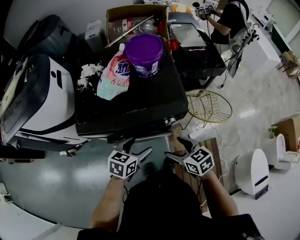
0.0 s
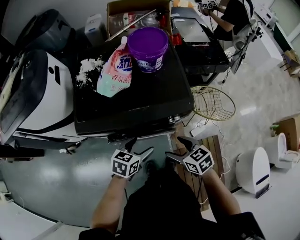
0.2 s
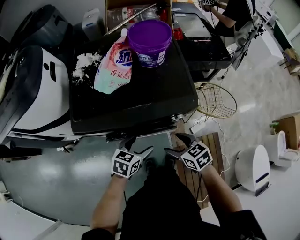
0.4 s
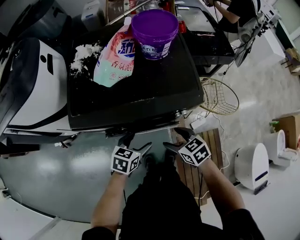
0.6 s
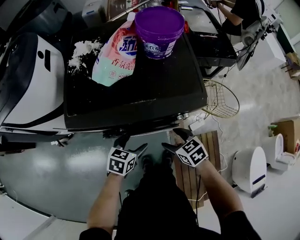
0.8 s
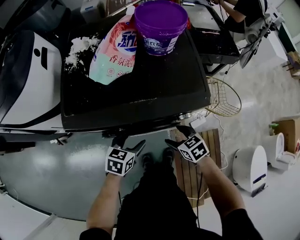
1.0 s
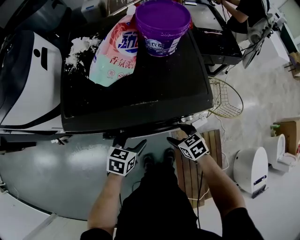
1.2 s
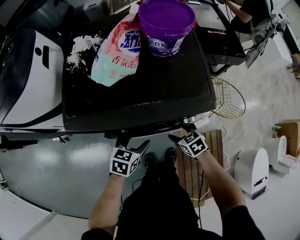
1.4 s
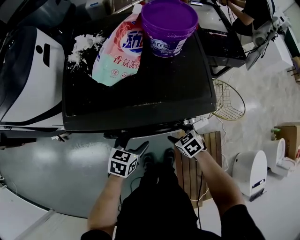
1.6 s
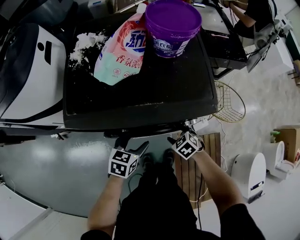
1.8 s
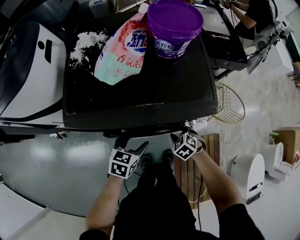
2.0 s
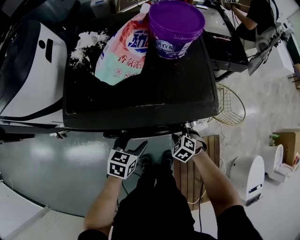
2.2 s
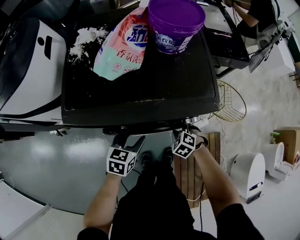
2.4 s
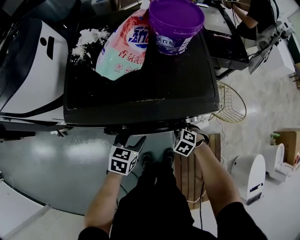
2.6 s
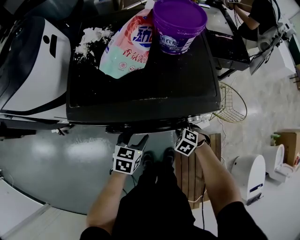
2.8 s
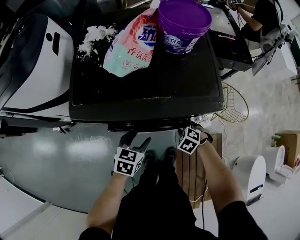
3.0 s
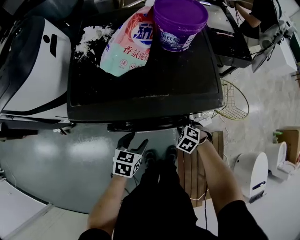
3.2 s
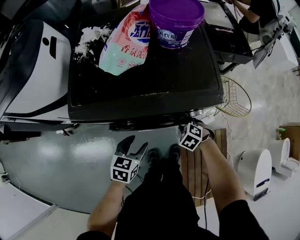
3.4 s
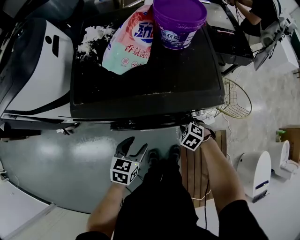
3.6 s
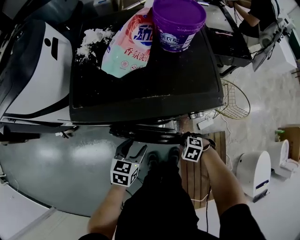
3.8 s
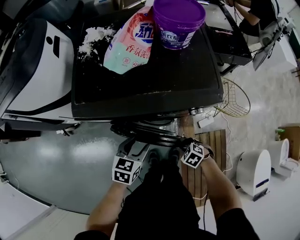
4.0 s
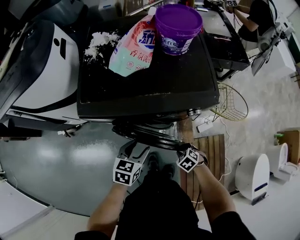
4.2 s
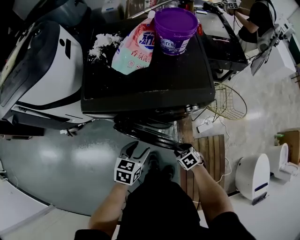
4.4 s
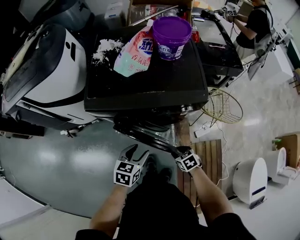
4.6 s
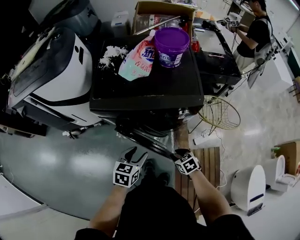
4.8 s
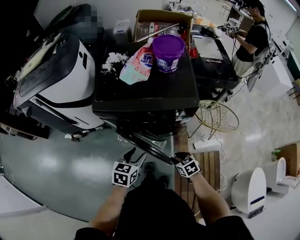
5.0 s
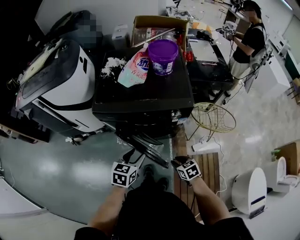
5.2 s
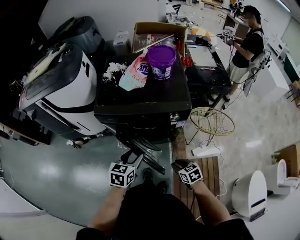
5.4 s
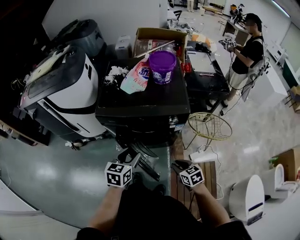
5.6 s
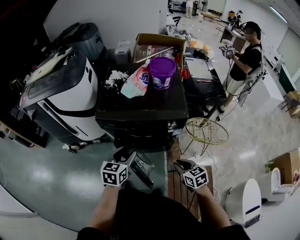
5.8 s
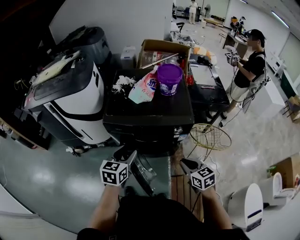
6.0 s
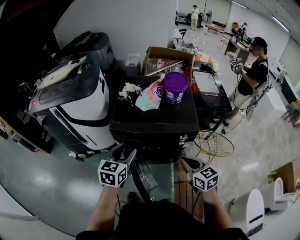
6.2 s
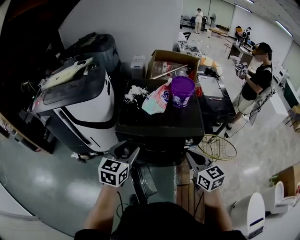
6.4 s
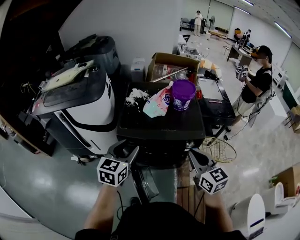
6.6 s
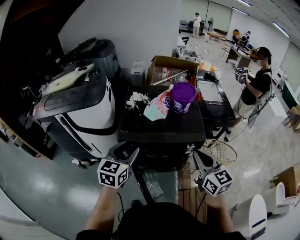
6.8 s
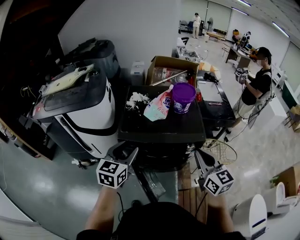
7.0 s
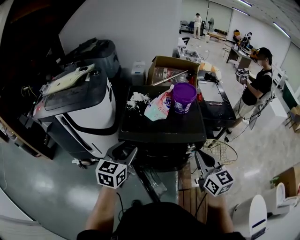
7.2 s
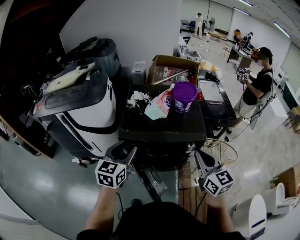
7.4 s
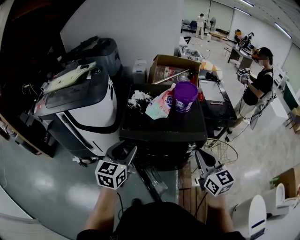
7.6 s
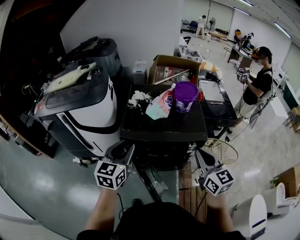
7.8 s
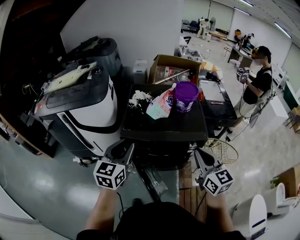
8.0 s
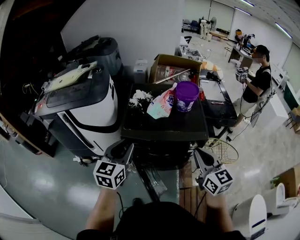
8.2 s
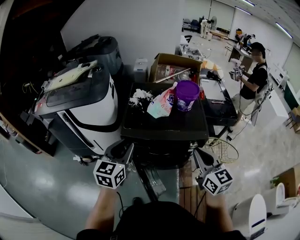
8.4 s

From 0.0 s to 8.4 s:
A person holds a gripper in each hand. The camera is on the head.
From 0.0 s to 1.4 s: The right gripper moves downward, about 20 cm, and turns by roughly 20 degrees, while the left gripper goes roughly 15 cm downward.
From 1.4 s to 2.8 s: The right gripper changes its angle by roughly 40 degrees, and closes.
From 2.8 s to 4.2 s: The right gripper changes place by roughly 15 cm. Meanwhile the left gripper moves about 10 cm.
From 4.2 s to 5.6 s: The two grippers go some 20 cm upward. The right gripper angles its fingers upward, by some 30 degrees.
From 5.6 s to 7.0 s: The left gripper is displaced upward, to the left and forward by some 25 cm. The right gripper travels upward by about 30 cm, and points its fingers about 40 degrees further upward.
From 7.0 s to 8.4 s: The grippers stay close to where they were, moving slightly.

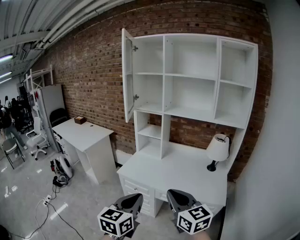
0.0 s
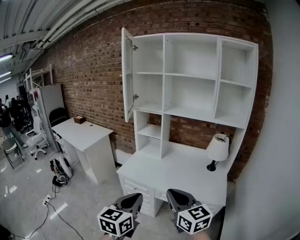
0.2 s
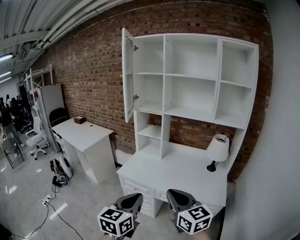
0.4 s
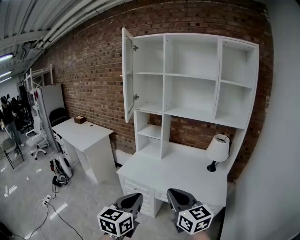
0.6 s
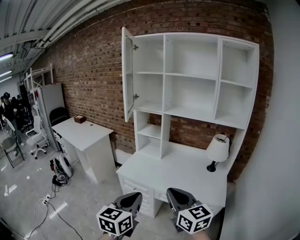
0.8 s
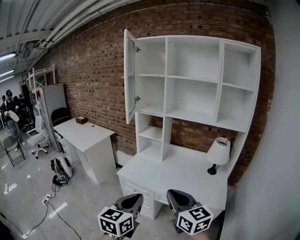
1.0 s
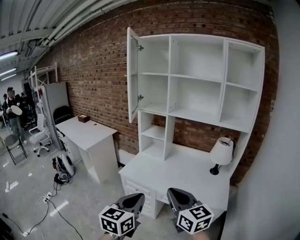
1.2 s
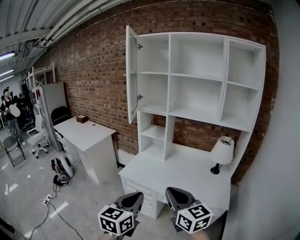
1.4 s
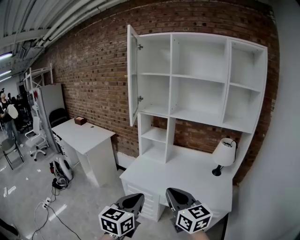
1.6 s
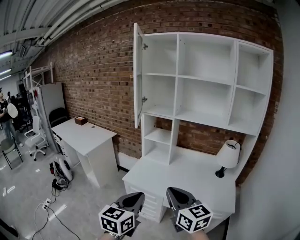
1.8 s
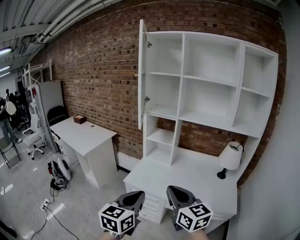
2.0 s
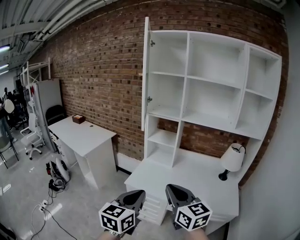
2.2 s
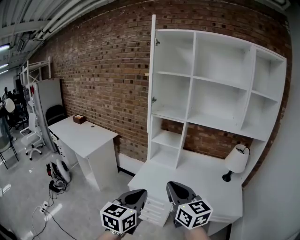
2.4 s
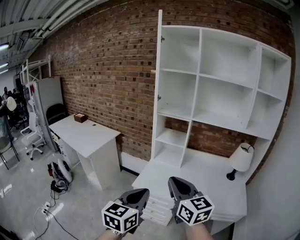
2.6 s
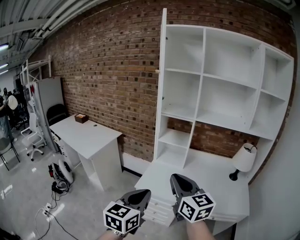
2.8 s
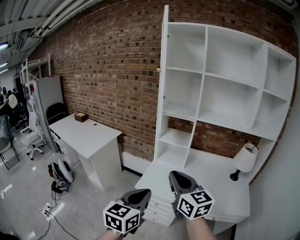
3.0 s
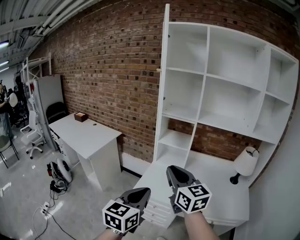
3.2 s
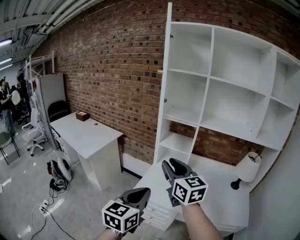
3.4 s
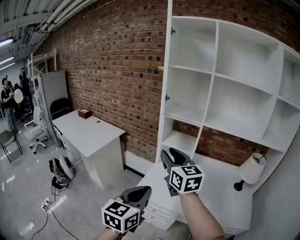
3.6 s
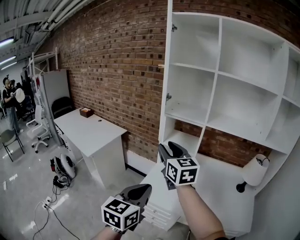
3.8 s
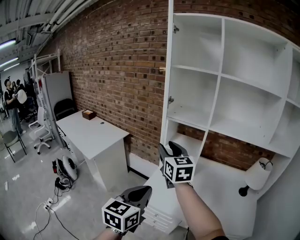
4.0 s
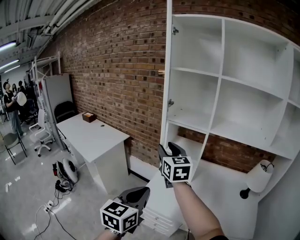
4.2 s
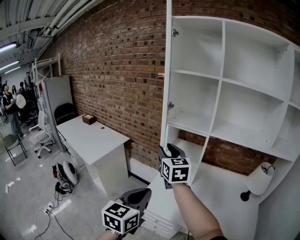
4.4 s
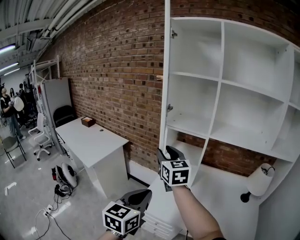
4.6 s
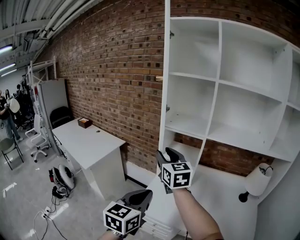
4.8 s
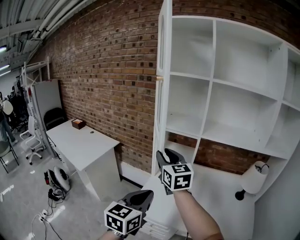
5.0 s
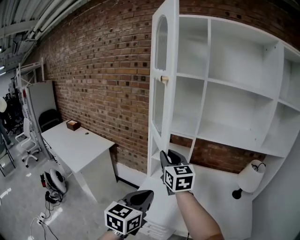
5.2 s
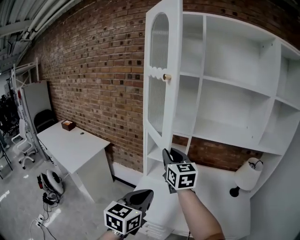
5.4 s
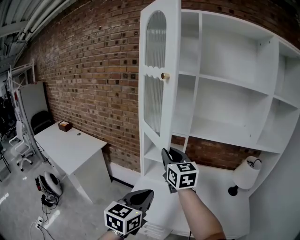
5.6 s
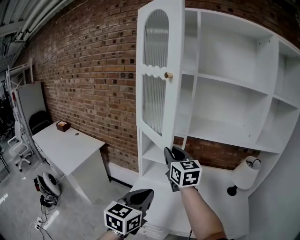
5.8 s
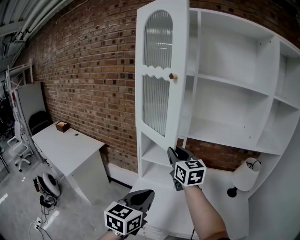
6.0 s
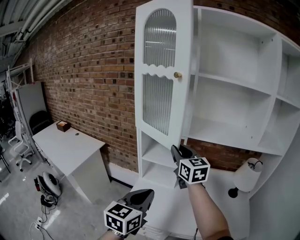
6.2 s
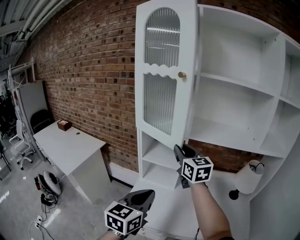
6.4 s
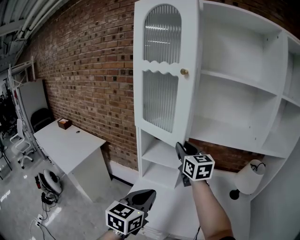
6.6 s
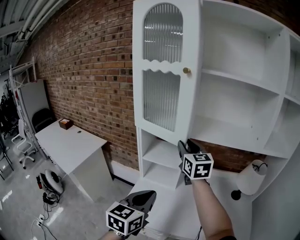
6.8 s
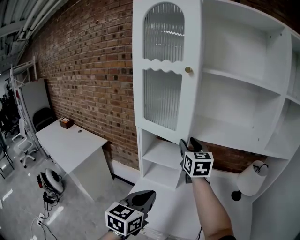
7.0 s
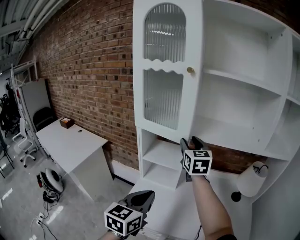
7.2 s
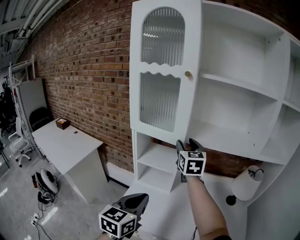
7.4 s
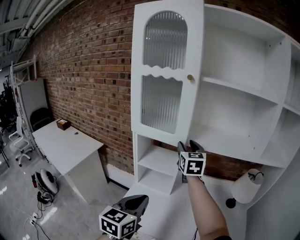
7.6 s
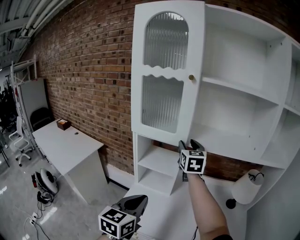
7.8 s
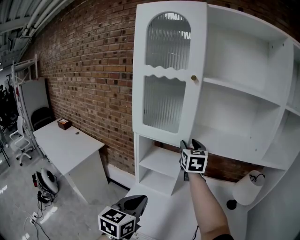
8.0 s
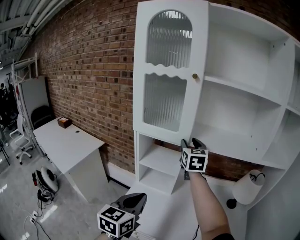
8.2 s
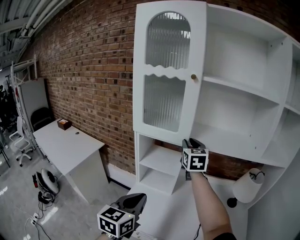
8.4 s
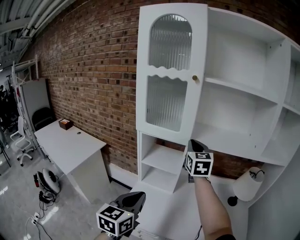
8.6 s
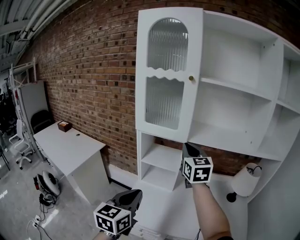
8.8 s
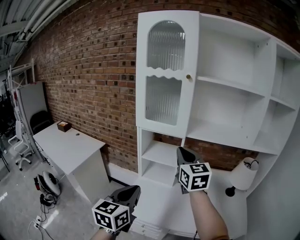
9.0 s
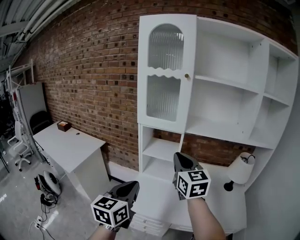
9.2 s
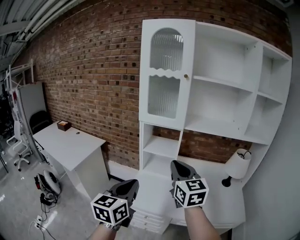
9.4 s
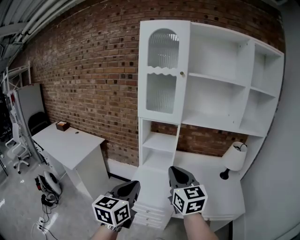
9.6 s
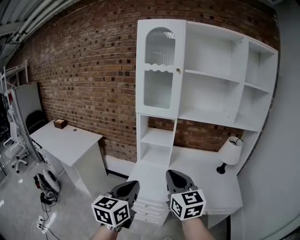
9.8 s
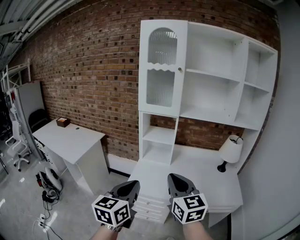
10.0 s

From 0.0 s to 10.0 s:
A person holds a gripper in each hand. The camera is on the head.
From 0.0 s to 1.4 s: There are only small adjustments of the grippers.
From 1.4 s to 2.8 s: The right gripper moves forward and to the left, about 30 cm; the left gripper shifts approximately 25 cm to the left and forward.
From 2.8 s to 4.2 s: The left gripper moves forward, some 15 cm. The right gripper goes approximately 30 cm forward, and opens its fingers.
From 4.2 s to 5.8 s: The two grippers go approximately 15 cm to the right and forward. The right gripper closes.
From 5.8 s to 7.2 s: The right gripper shifts roughly 15 cm forward and to the right, and opens its fingers, while the left gripper travels forward by roughly 5 cm.
From 7.2 s to 8.6 s: The right gripper closes.
From 8.6 s to 10.0 s: The left gripper is displaced backward by roughly 25 cm; the right gripper travels backward by some 50 cm.

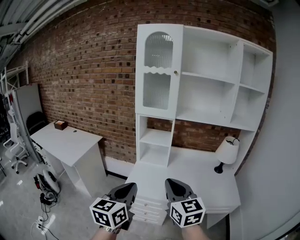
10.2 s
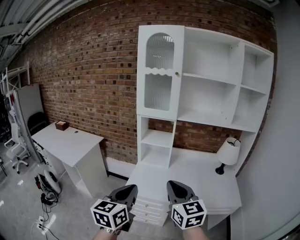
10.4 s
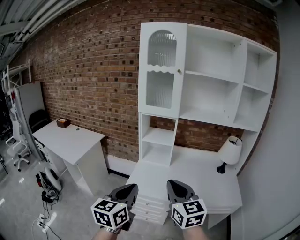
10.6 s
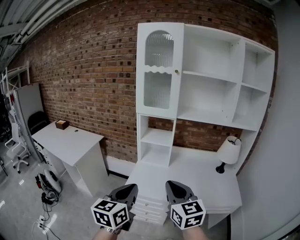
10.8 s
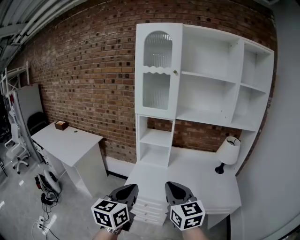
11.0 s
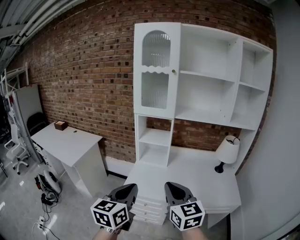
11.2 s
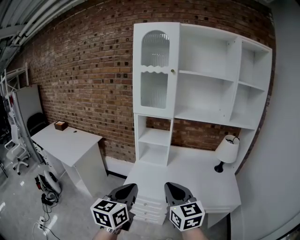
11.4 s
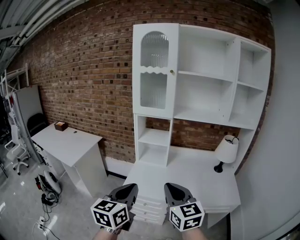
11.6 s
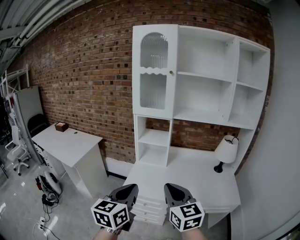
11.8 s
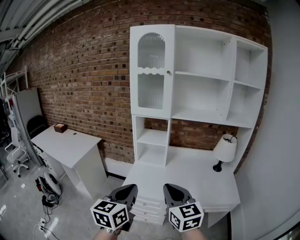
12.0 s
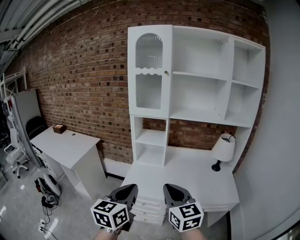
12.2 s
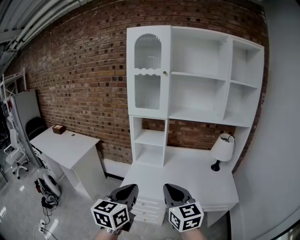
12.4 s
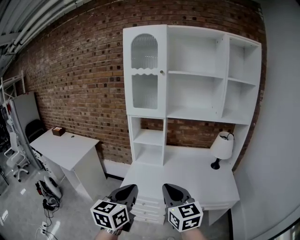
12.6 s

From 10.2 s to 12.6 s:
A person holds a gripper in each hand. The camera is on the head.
From 10.2 s to 12.6 s: There are only small adjustments of the grippers.

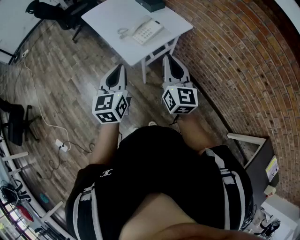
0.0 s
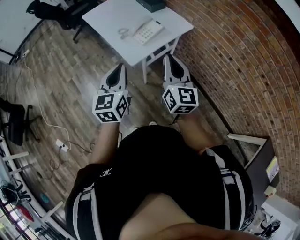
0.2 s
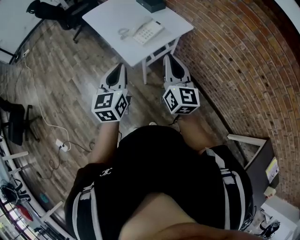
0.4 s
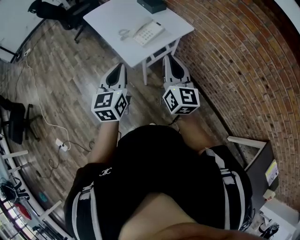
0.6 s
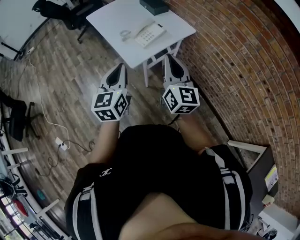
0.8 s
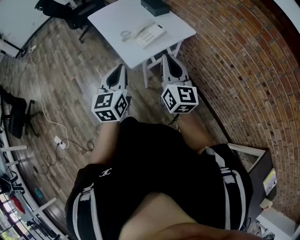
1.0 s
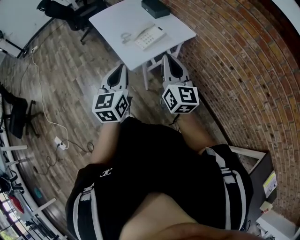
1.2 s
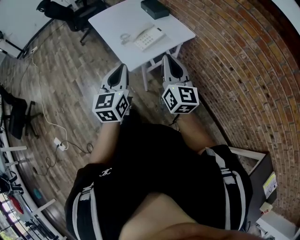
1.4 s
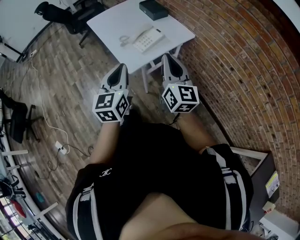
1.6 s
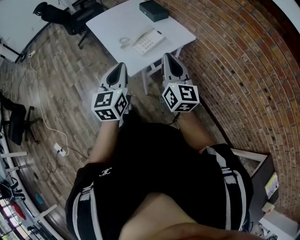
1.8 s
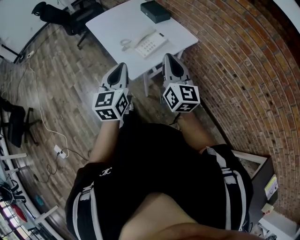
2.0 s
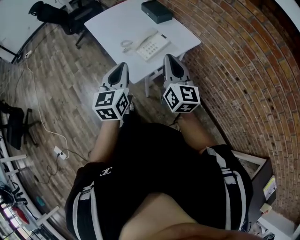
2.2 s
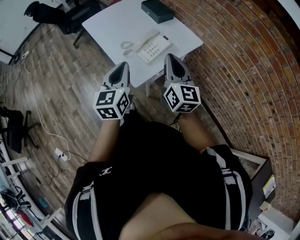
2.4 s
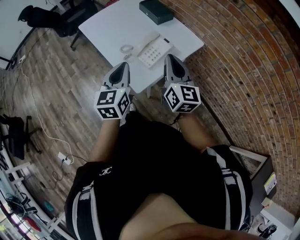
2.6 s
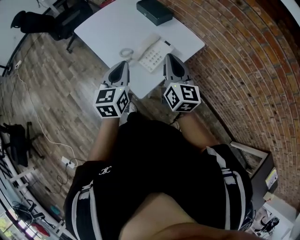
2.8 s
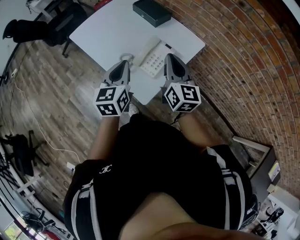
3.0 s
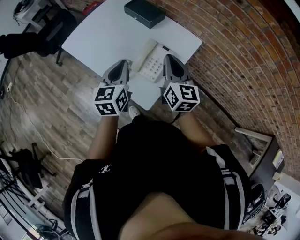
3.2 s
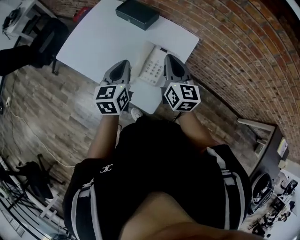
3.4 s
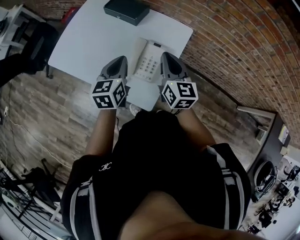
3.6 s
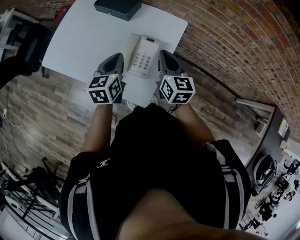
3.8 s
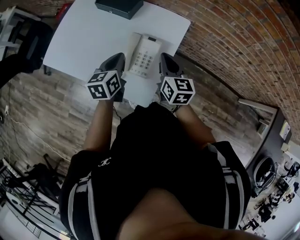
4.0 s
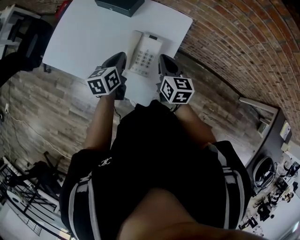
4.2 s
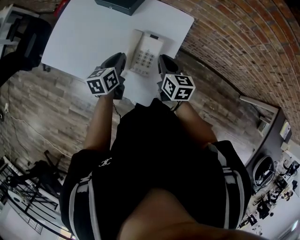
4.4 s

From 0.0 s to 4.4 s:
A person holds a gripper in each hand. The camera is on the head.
From 0.0 s to 1.4 s: The grippers move only a little.
From 1.4 s to 3.0 s: Both grippers move forward, some 30 cm.
From 3.0 s to 4.4 s: The left gripper heads downward and forward, covering about 20 cm, and changes its angle by some 30 degrees. The right gripper heads downward, covering some 15 cm, and turns by approximately 30 degrees.
